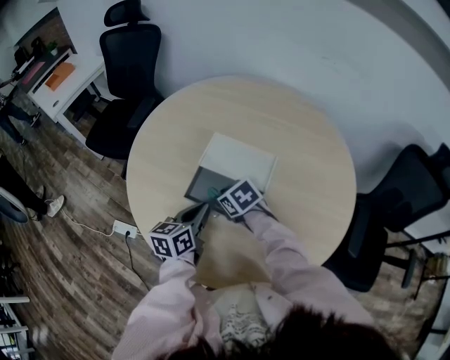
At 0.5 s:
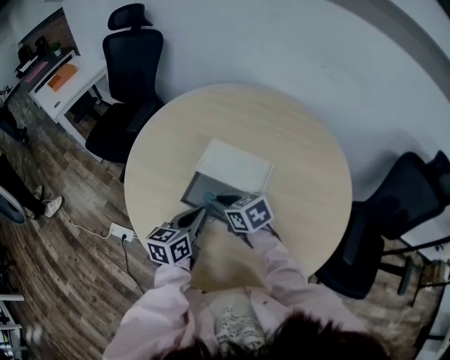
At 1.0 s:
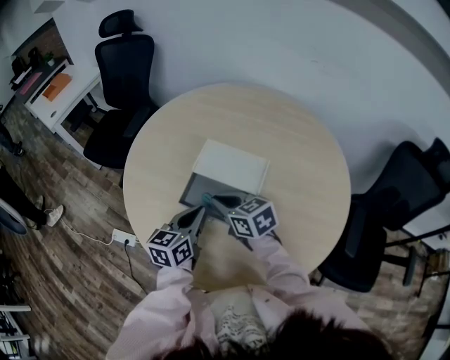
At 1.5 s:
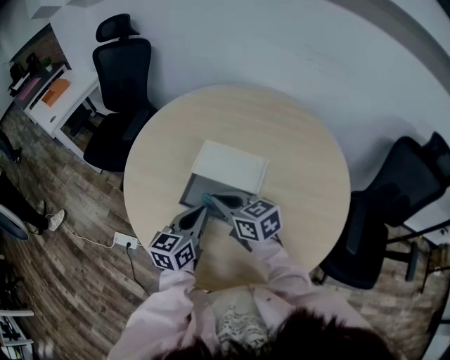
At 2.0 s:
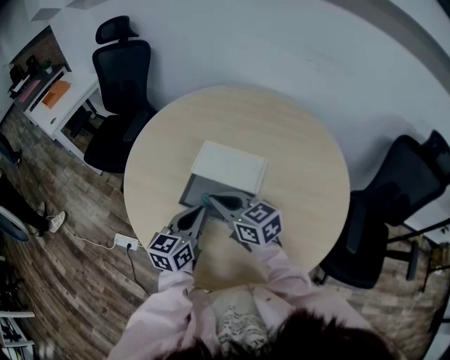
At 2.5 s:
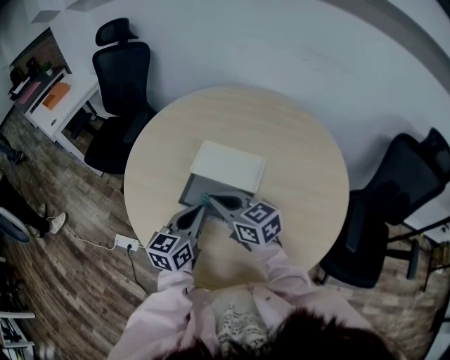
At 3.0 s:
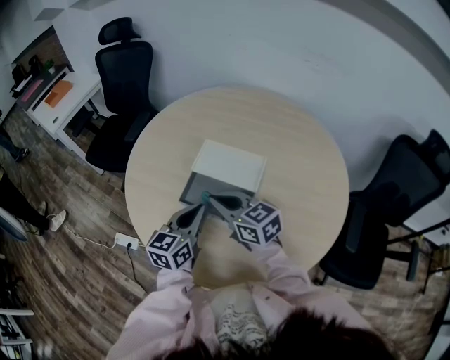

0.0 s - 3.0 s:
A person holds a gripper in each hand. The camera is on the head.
0.0 s - 1.5 s: The right gripper travels upward by roughly 10 cm, points its fingers some 30 degrees further upward, and closes.
1.5 s - 3.0 s: There are only small adjustments of the grippers.

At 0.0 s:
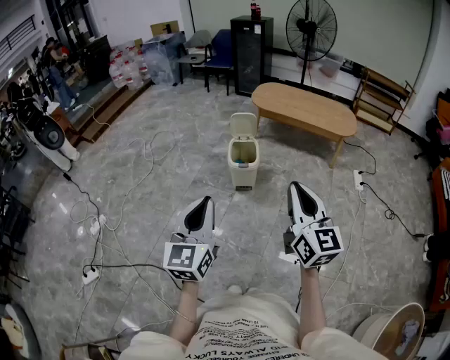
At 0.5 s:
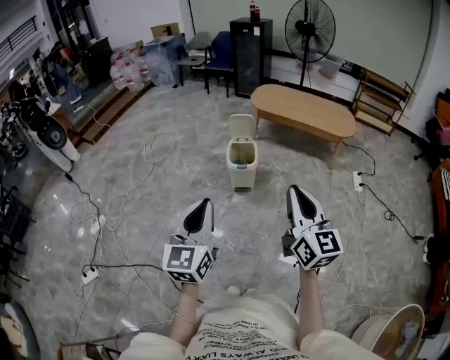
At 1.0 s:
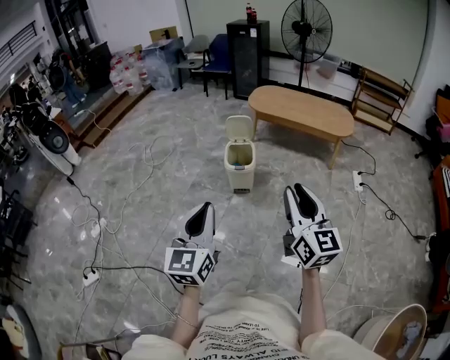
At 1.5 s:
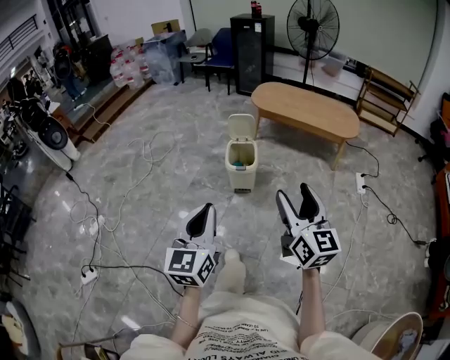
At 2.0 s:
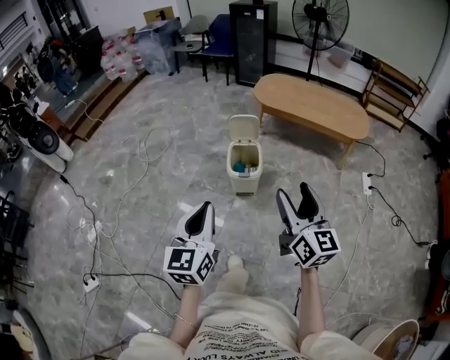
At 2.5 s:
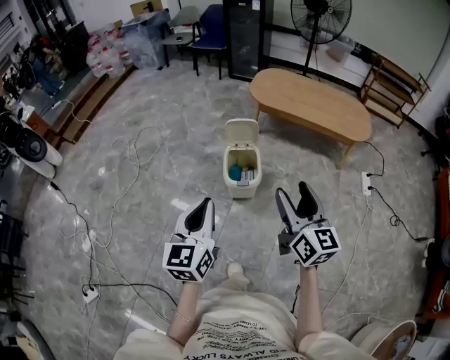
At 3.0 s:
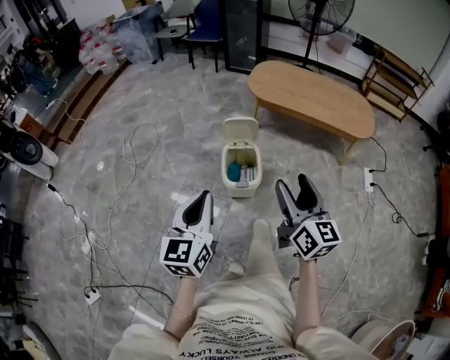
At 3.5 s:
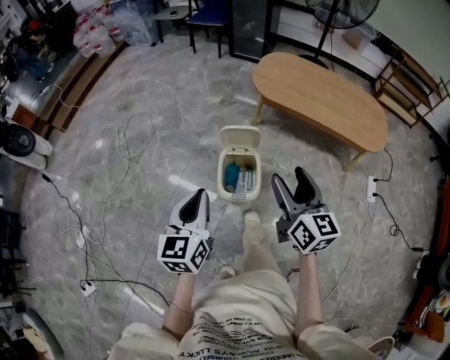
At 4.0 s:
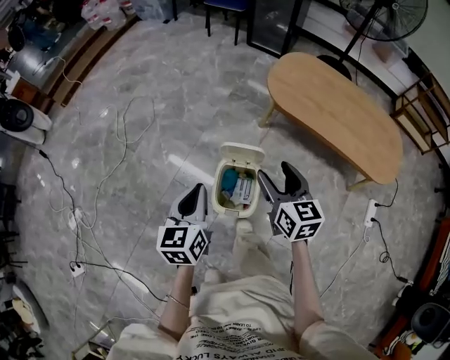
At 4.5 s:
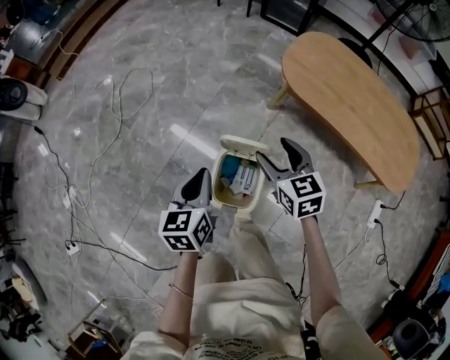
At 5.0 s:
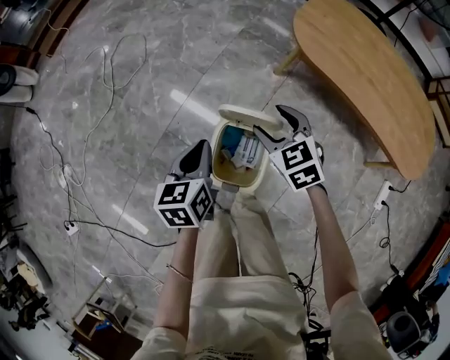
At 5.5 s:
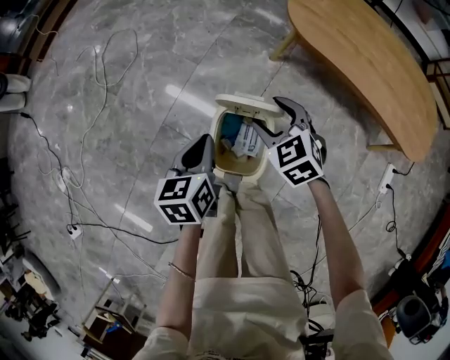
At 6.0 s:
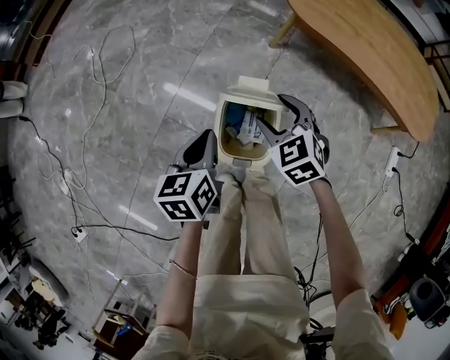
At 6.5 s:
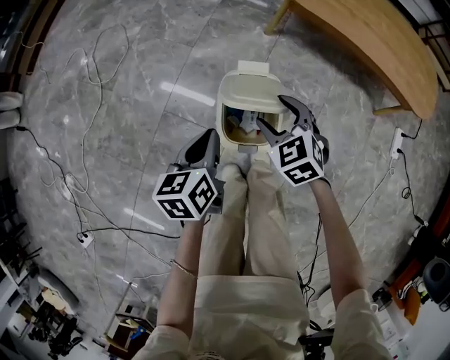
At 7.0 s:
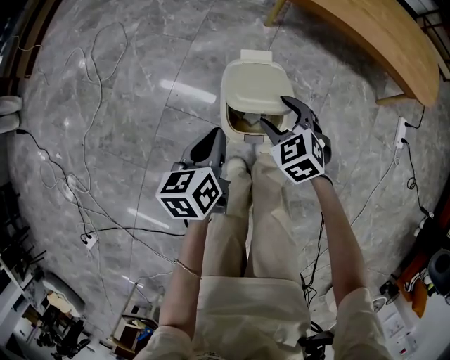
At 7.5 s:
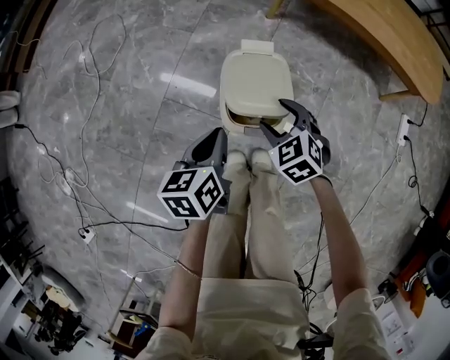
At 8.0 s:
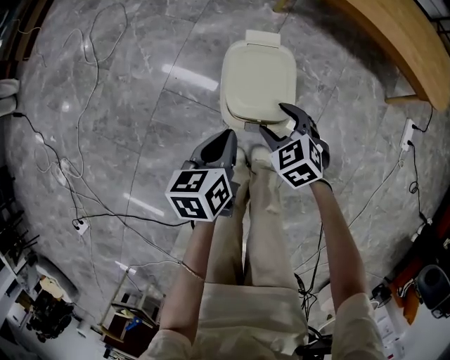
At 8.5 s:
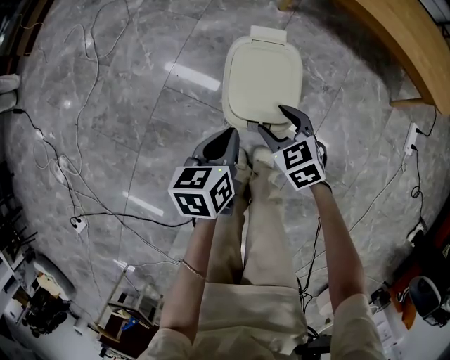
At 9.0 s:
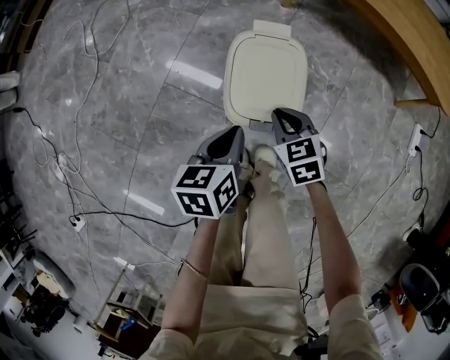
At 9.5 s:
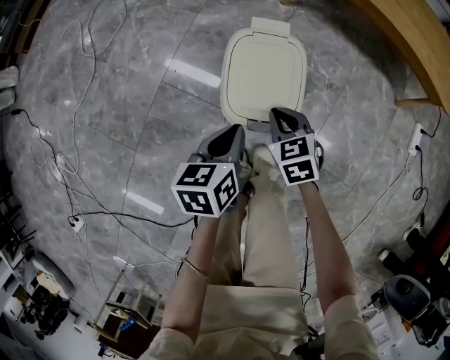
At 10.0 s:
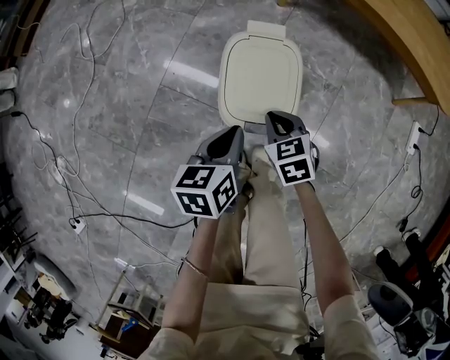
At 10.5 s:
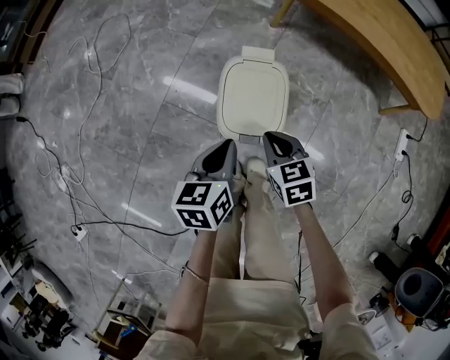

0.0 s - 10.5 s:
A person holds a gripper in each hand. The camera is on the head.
0.0 s - 2.0 s: The grippers both shift forward by some 15 cm. The right gripper opens up.
2.0 s - 4.0 s: Both grippers are carried forward, roughly 40 cm. The right gripper swivels roughly 30 degrees, while the left gripper turns by approximately 20 degrees.
4.0 s - 6.5 s: The grippers both shift downward by approximately 20 cm. The right gripper swivels about 40 degrees. The left gripper turns by some 20 degrees.
6.5 s - 8.5 s: The two grippers go about 15 cm downward and backward.
8.5 s - 10.5 s: The right gripper closes.

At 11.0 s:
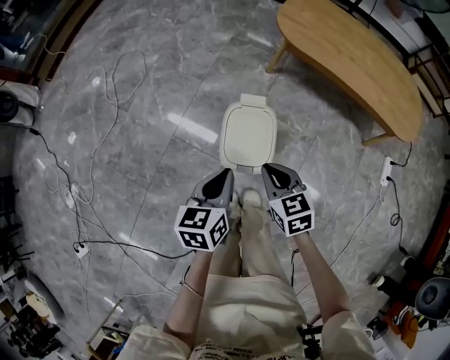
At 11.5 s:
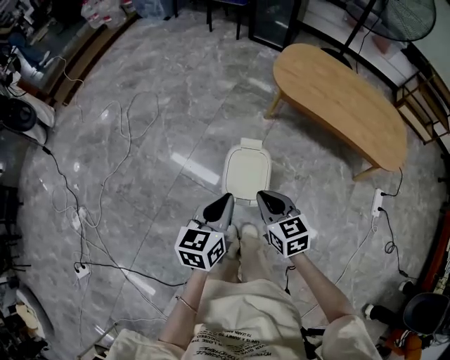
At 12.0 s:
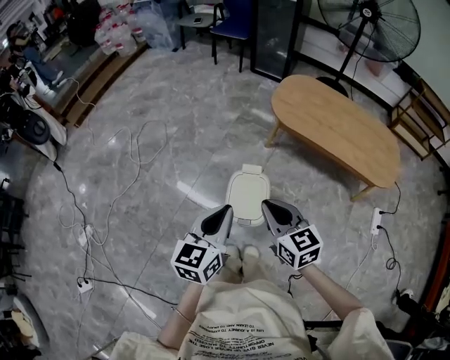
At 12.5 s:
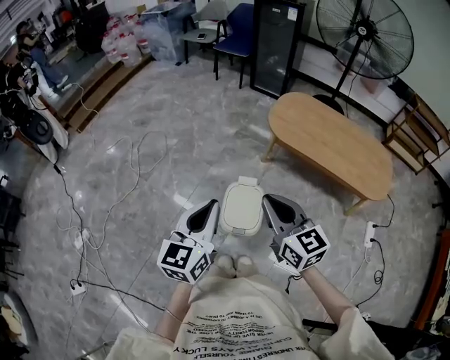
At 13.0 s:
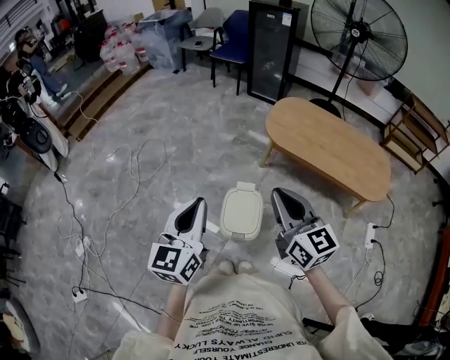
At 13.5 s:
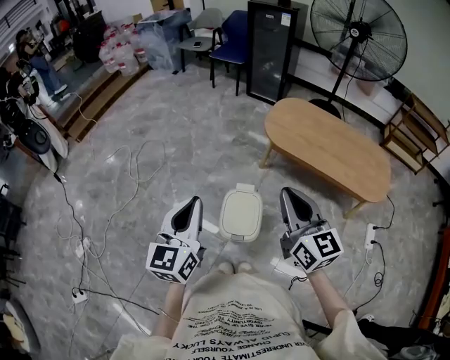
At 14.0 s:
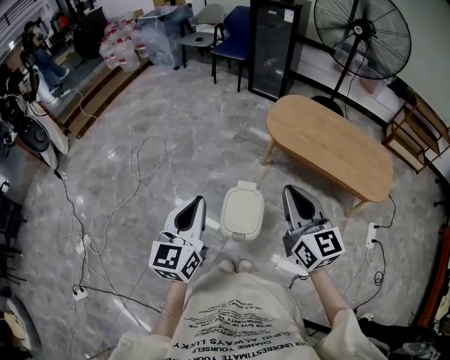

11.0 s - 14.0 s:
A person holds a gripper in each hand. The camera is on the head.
11.0 s - 12.5 s: The two grippers go about 25 cm upward. The left gripper changes its angle by approximately 30 degrees. The right gripper points its fingers roughly 30 degrees further upward.
12.5 s - 14.0 s: The right gripper heads to the right, covering approximately 5 cm.

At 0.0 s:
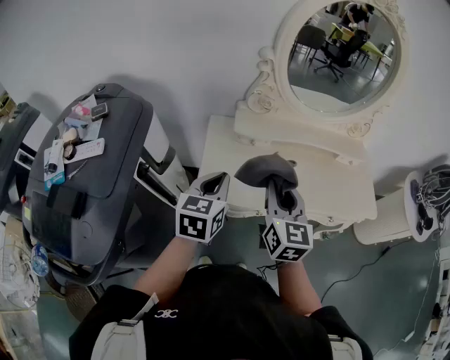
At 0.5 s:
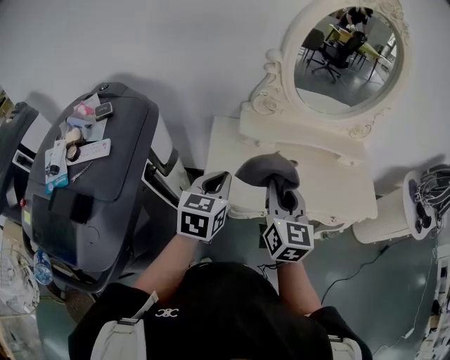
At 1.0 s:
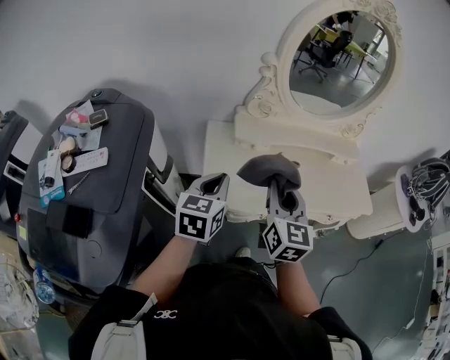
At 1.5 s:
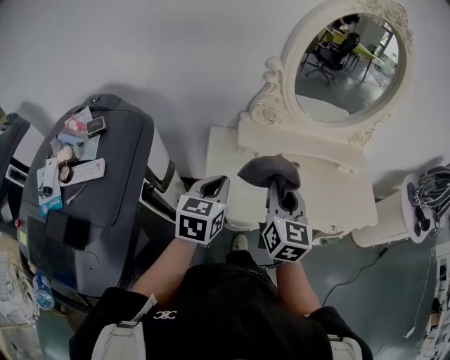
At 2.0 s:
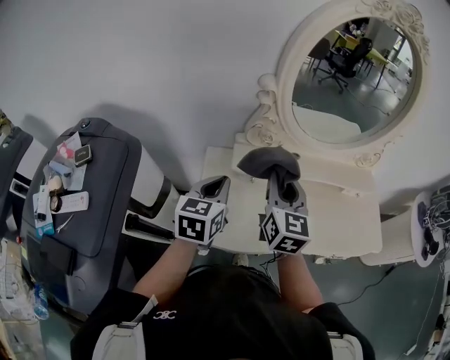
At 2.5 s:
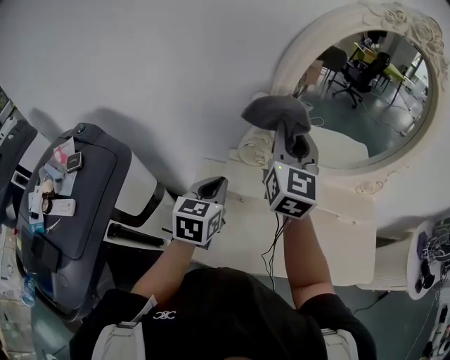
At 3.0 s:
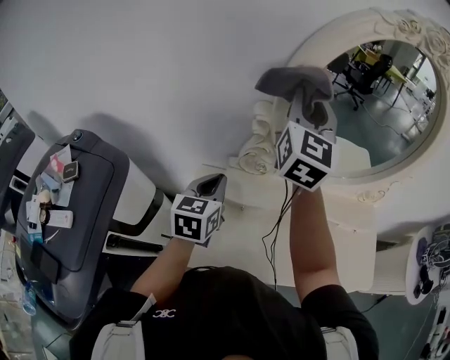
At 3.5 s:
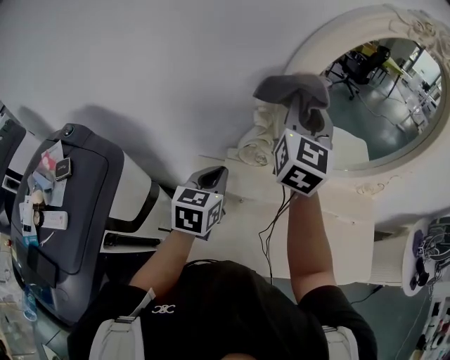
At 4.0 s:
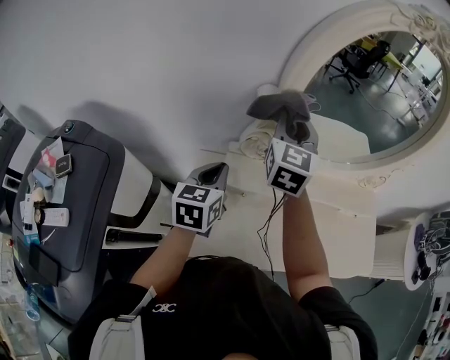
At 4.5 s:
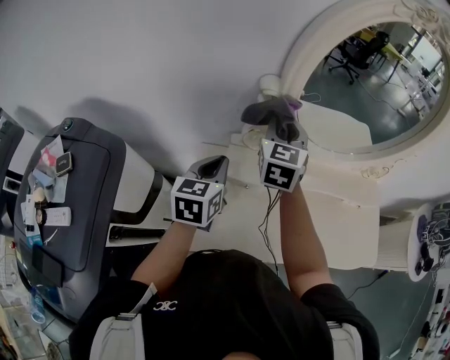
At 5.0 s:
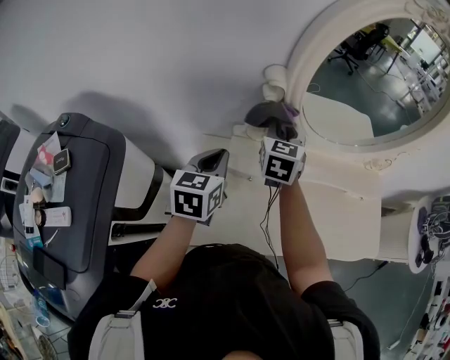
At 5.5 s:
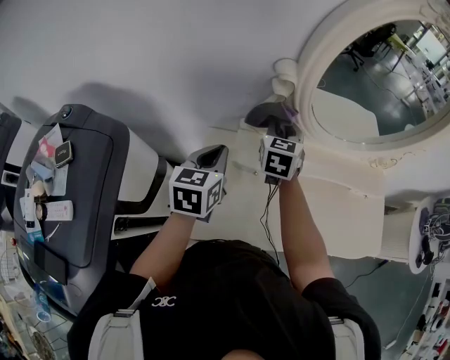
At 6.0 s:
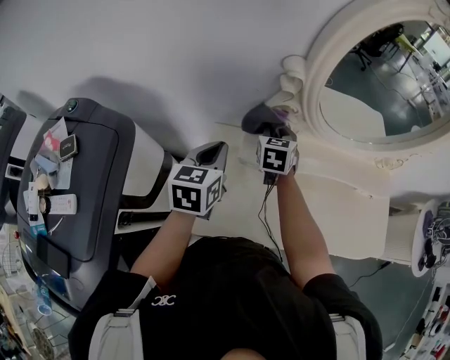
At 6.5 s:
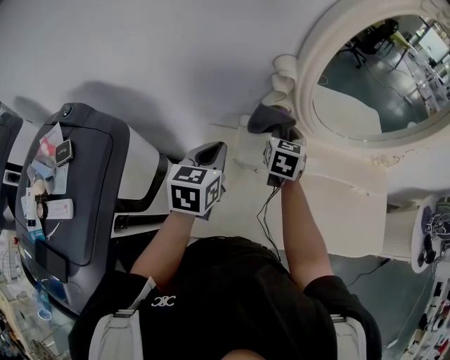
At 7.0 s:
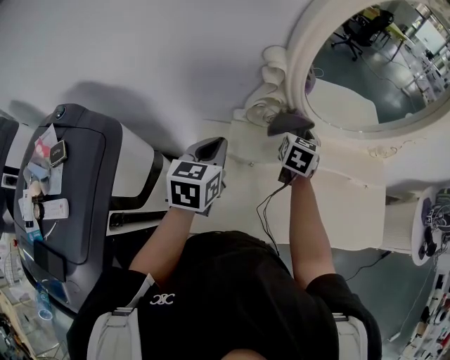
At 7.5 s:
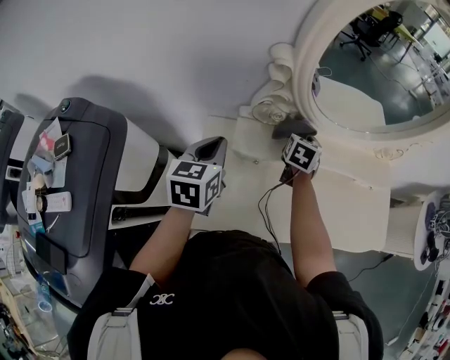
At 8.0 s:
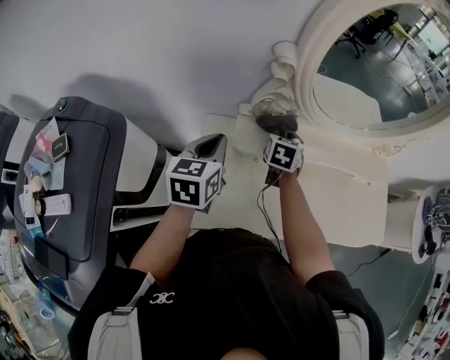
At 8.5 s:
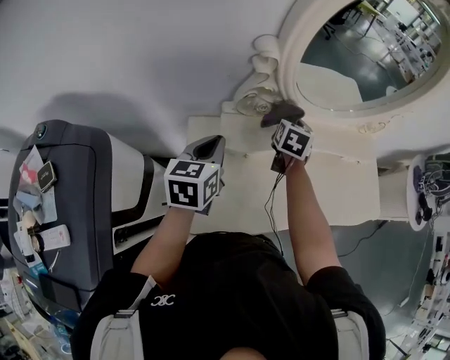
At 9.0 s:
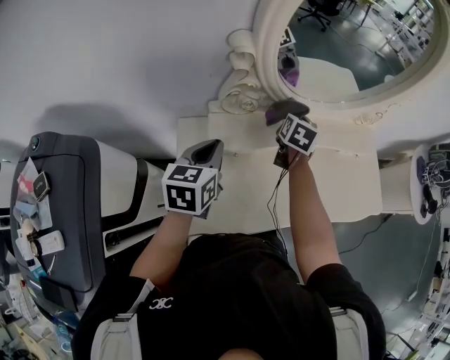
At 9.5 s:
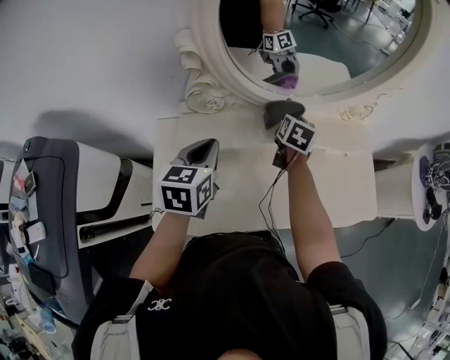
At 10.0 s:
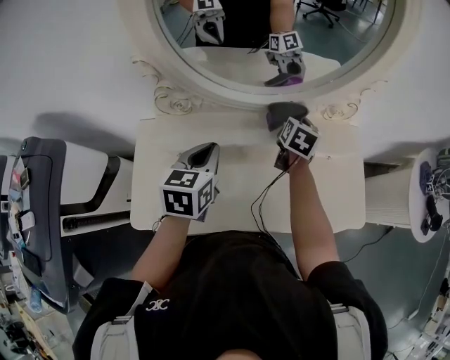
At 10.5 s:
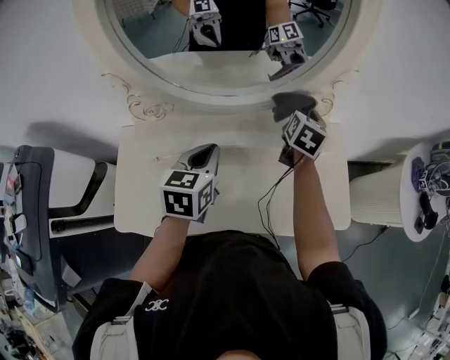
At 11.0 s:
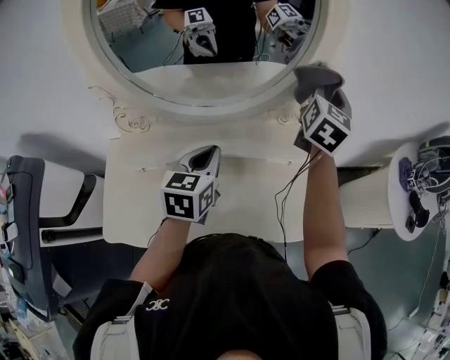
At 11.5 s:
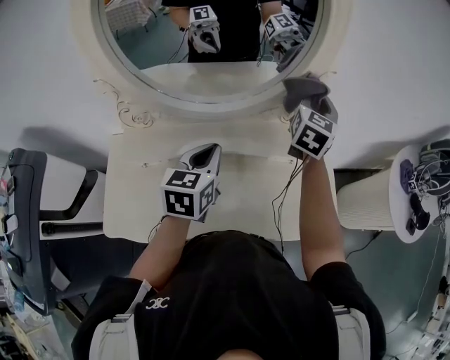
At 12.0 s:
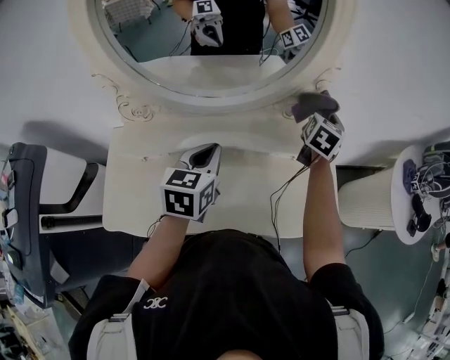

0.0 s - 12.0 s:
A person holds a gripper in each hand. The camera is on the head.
0.0 s - 2.0 s: Both grippers travel together forward, roughly 15 cm.
2.0 s - 4.0 s: The left gripper is displaced forward by approximately 10 cm. Meanwhile the right gripper goes about 25 cm forward and upward.
4.0 s - 6.0 s: The right gripper moves downward, about 20 cm, and rotates some 30 degrees. Meanwhile the left gripper moves to the left, some 5 cm.
6.0 s - 8.0 s: The right gripper heads to the right, covering about 5 cm.
8.0 s - 10.0 s: The left gripper shifts some 25 cm to the right. Meanwhile the right gripper moves to the right and forward, about 35 cm.
10.0 s - 12.0 s: The left gripper is displaced to the right by some 15 cm. The right gripper moves to the right, roughly 20 cm.
